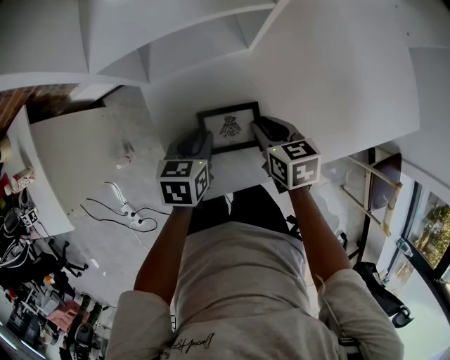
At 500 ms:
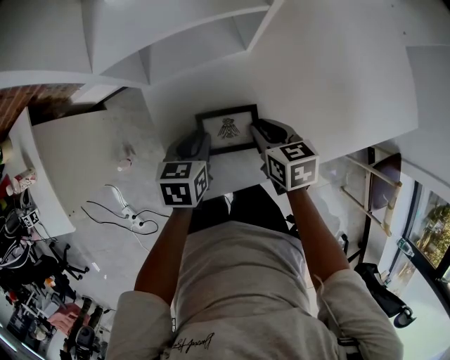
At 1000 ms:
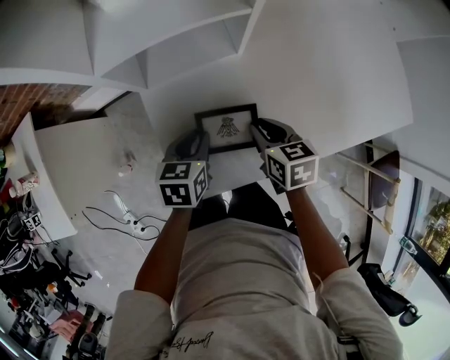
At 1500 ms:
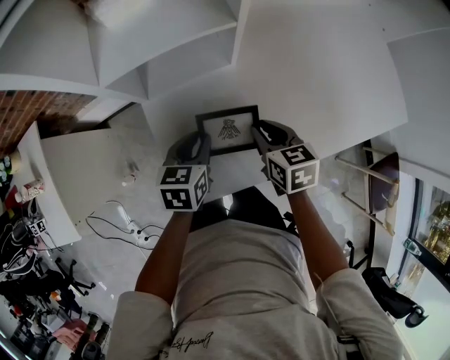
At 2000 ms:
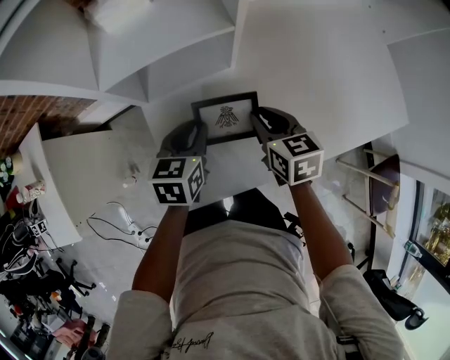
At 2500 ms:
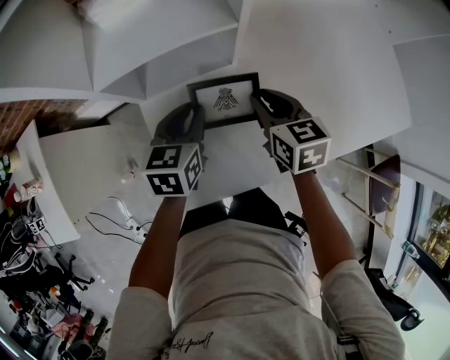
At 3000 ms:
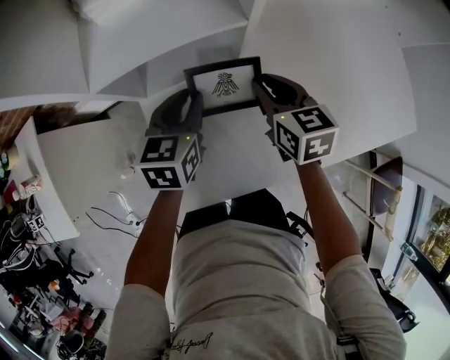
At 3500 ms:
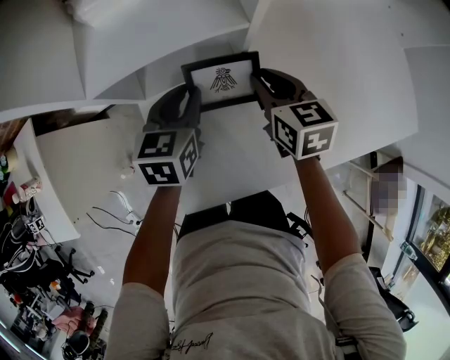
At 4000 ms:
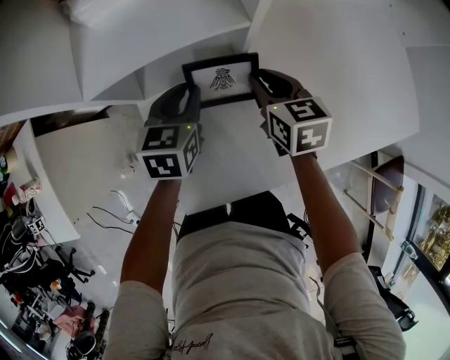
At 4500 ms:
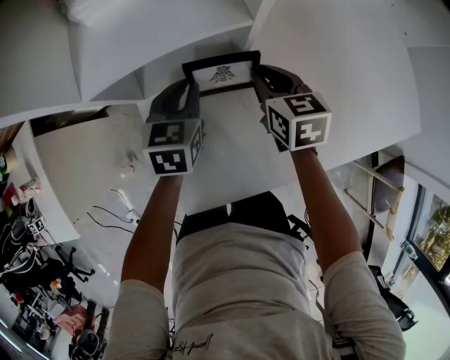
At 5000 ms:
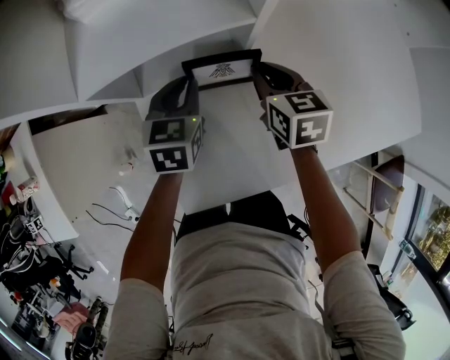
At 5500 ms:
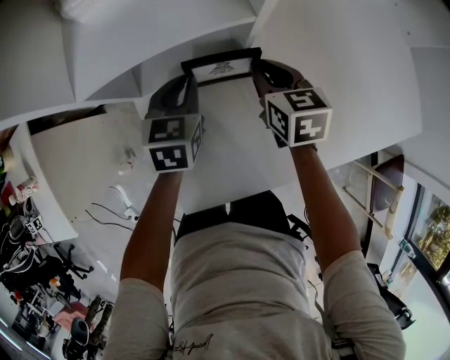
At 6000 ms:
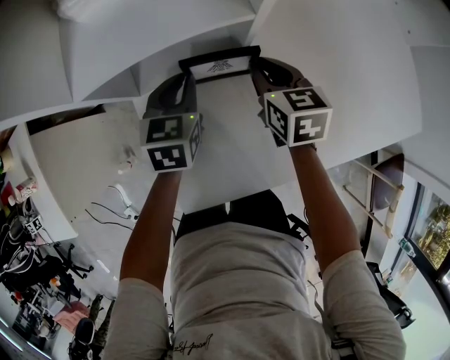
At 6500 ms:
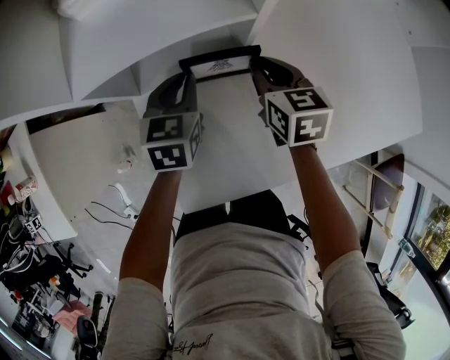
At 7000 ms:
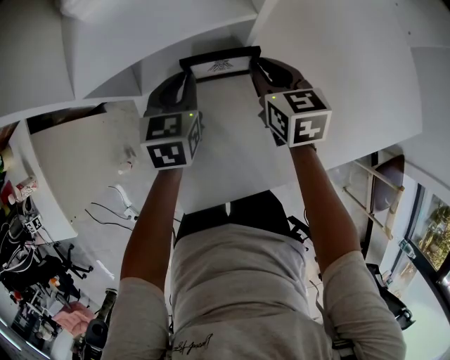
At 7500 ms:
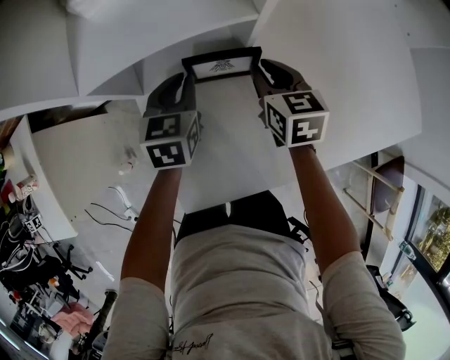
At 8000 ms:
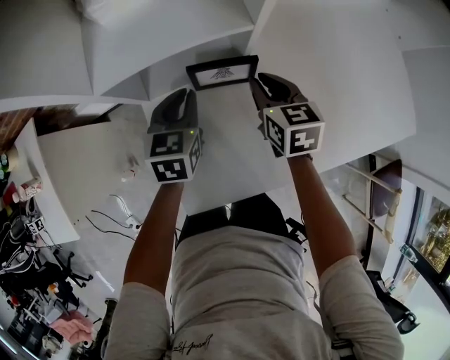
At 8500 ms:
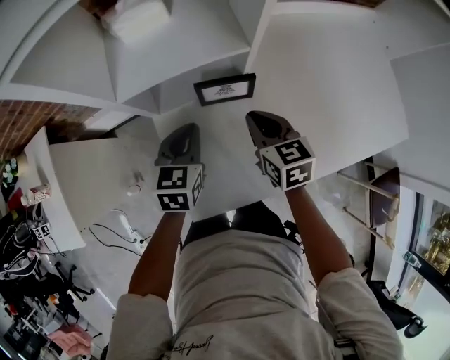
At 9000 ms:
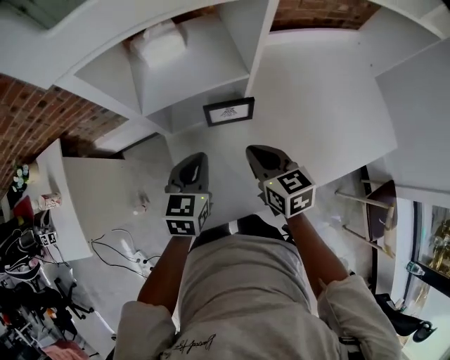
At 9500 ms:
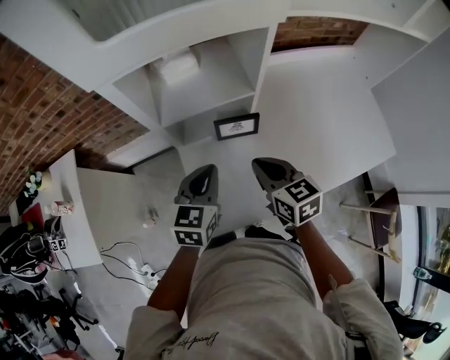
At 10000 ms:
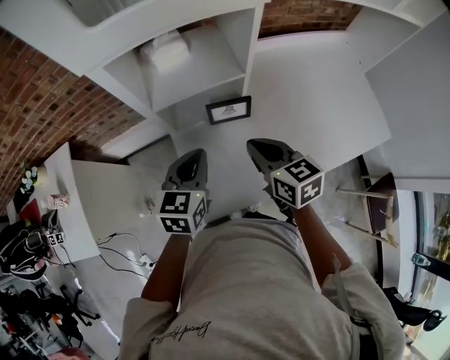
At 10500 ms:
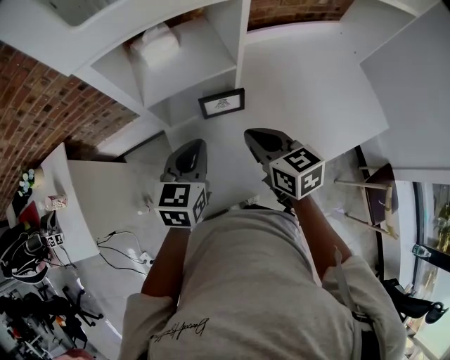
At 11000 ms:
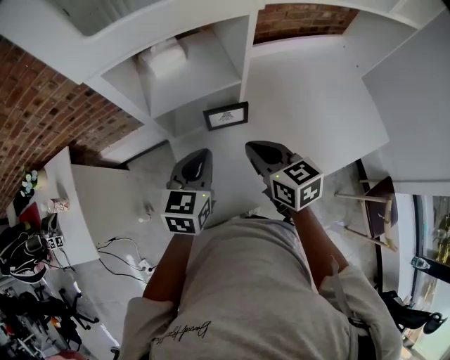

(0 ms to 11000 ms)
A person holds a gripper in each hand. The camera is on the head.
0 ms - 2000 ms: The left gripper moves upward and forward, about 10 cm. Meanwhile the right gripper shifts roughly 10 cm upward.
2000 ms - 3500 ms: Both grippers move forward, about 10 cm.
3500 ms - 5500 ms: The grippers make only small movements.
5500 ms - 7500 ms: The two grippers keep their place.
7500 ms - 9000 ms: The right gripper is displaced backward, upward and to the left by roughly 15 cm. The left gripper heads backward and upward, covering roughly 15 cm.
9000 ms - 11000 ms: Both grippers travel together upward, approximately 10 cm.

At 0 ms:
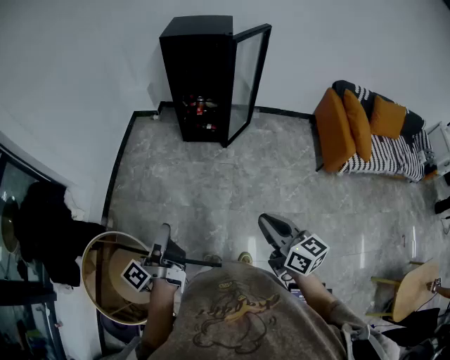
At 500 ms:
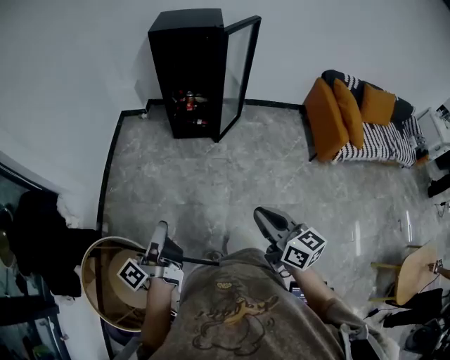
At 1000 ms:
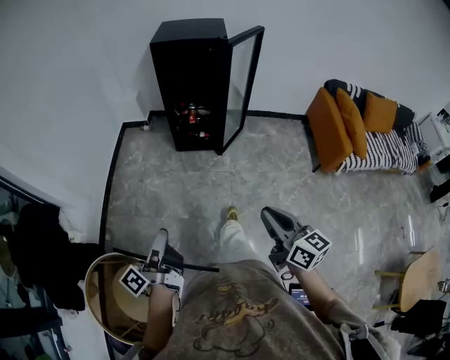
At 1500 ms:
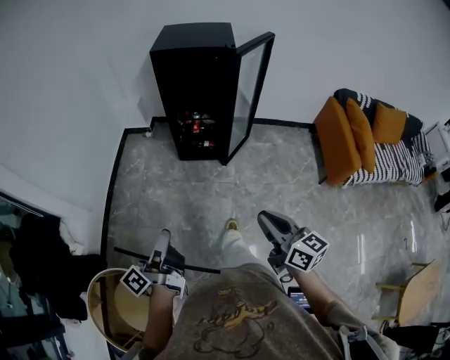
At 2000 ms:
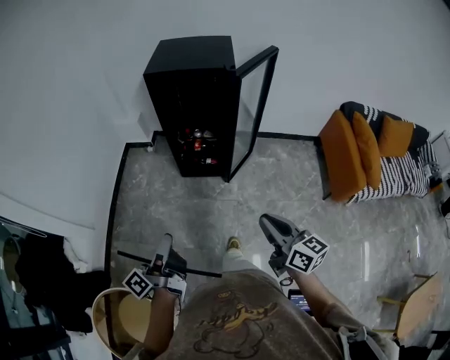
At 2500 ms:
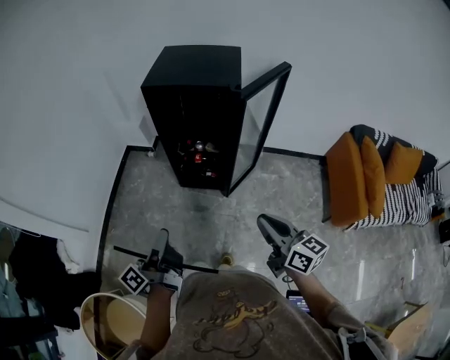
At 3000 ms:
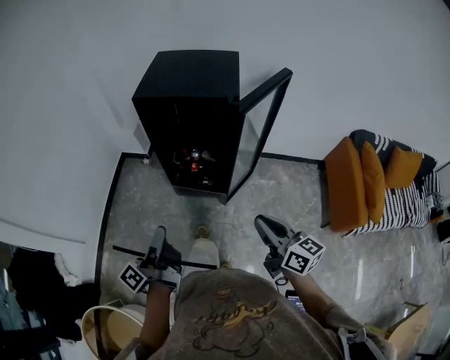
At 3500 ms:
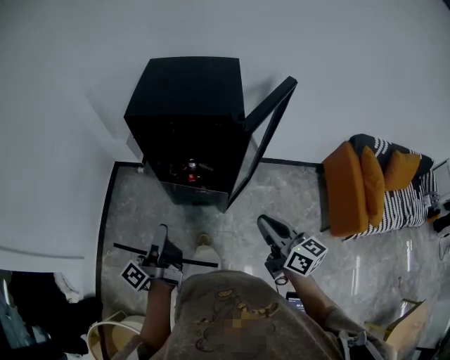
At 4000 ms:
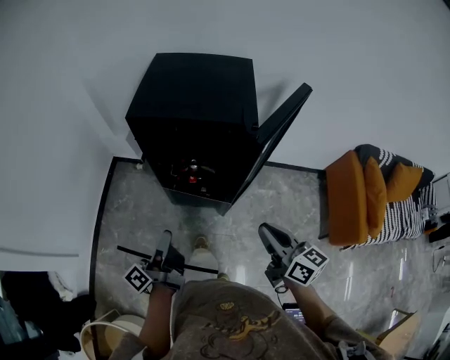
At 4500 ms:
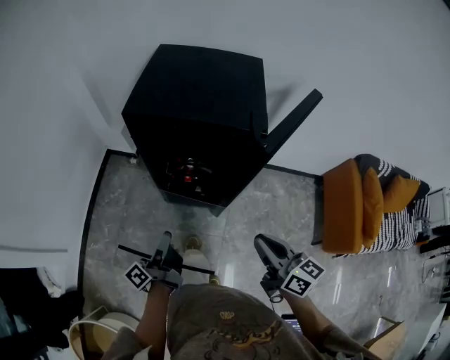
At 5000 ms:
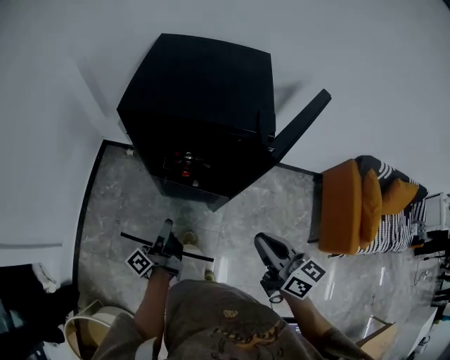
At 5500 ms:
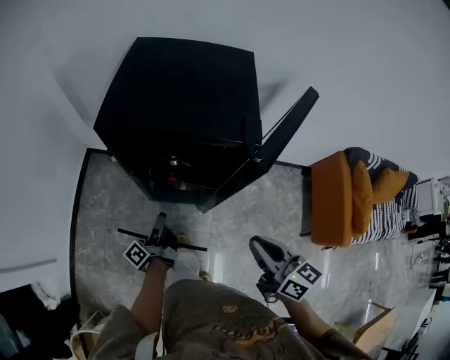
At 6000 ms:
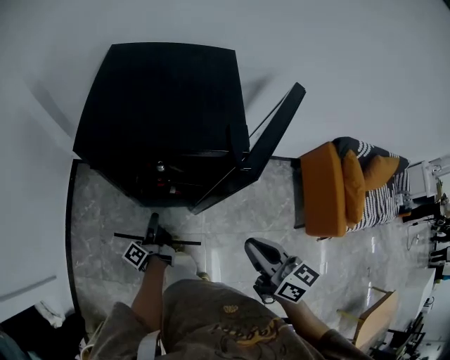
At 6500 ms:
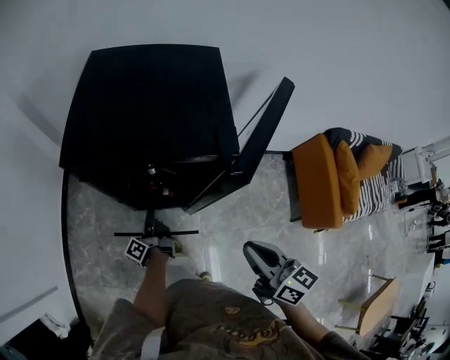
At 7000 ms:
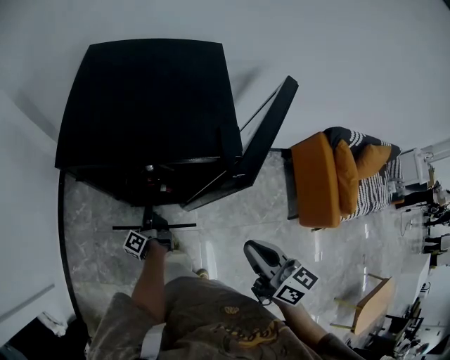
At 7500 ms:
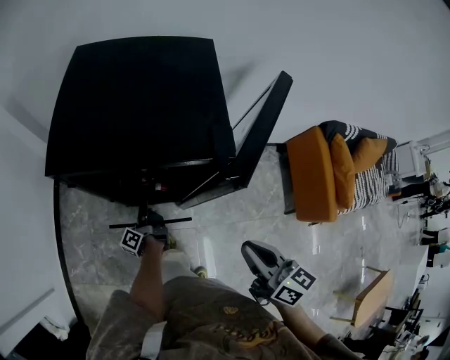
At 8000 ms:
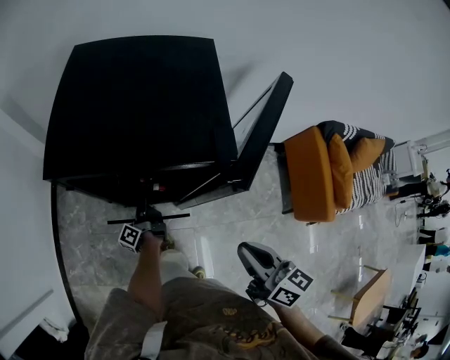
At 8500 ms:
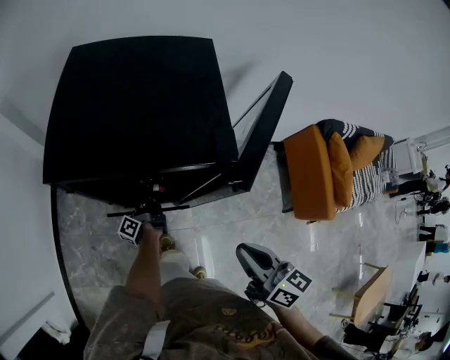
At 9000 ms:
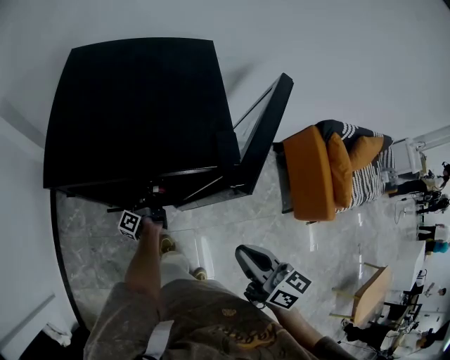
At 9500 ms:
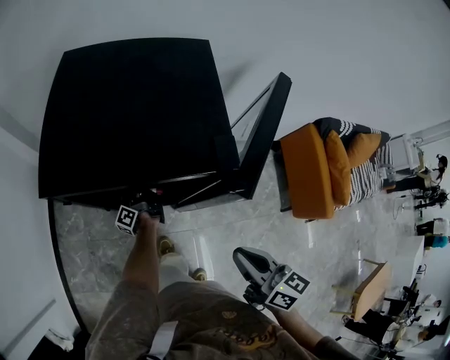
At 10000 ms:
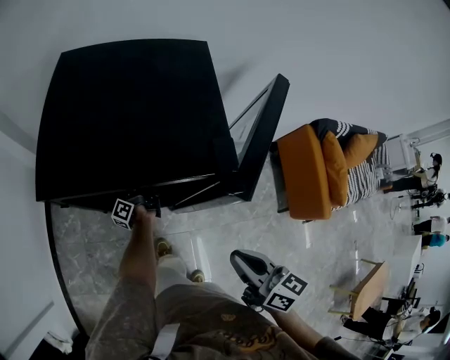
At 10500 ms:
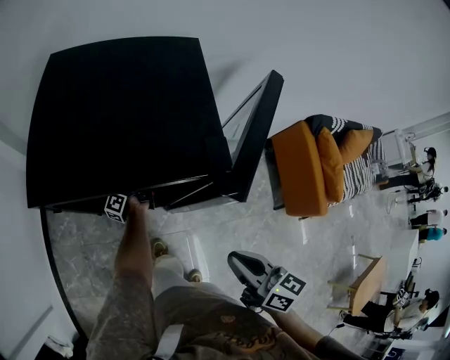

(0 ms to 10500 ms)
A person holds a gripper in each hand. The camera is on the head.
0 ms - 2000 ms: The right gripper changes place by approximately 30 cm.
2000 ms - 4000 ms: The right gripper ends up approximately 30 cm from where it was.
4000 ms - 6500 ms: The right gripper moves about 5 cm.

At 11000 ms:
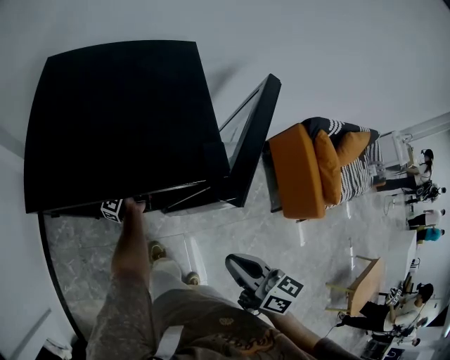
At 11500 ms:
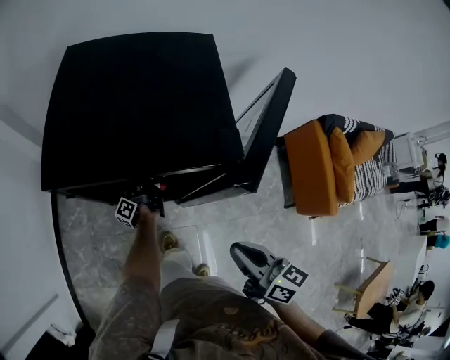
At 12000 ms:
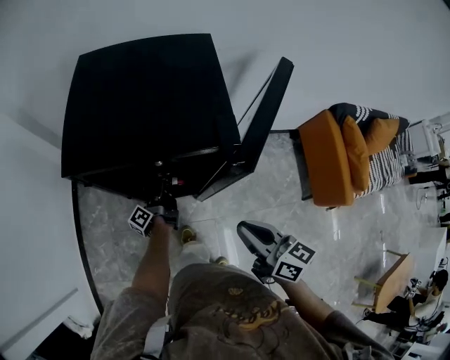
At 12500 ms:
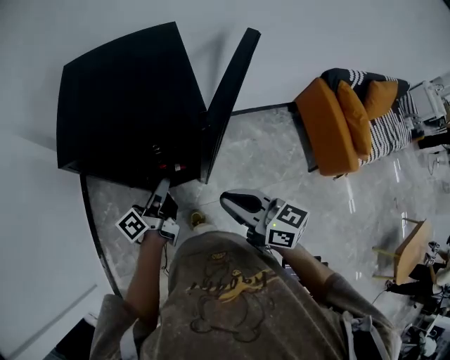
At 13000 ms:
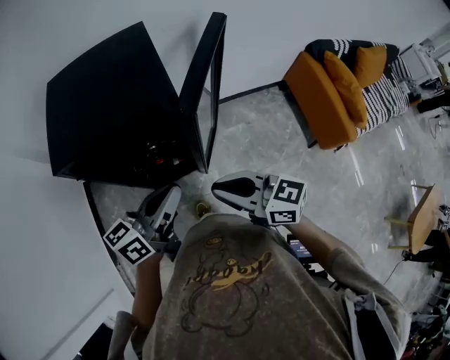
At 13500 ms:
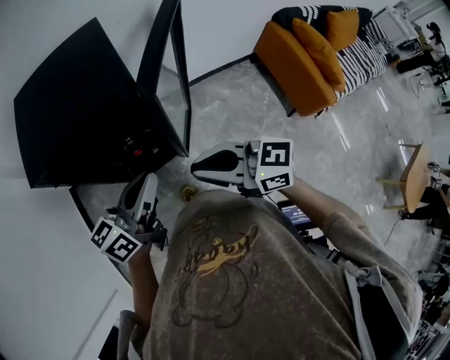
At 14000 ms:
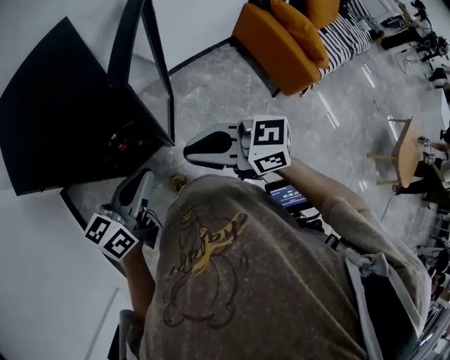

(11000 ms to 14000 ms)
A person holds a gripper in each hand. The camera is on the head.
11000 ms - 12500 ms: The right gripper shifts by some 5 cm.
12500 ms - 14000 ms: The right gripper ends up roughly 5 cm from where it was.

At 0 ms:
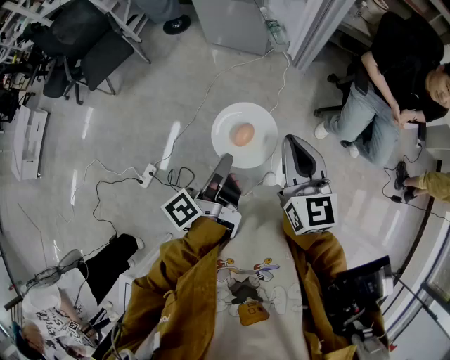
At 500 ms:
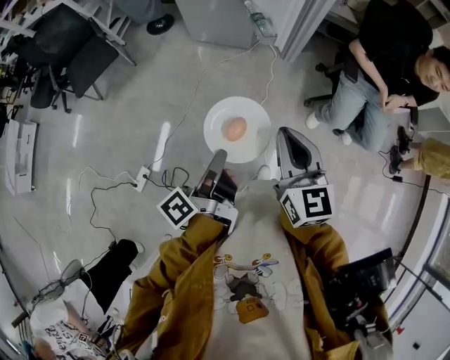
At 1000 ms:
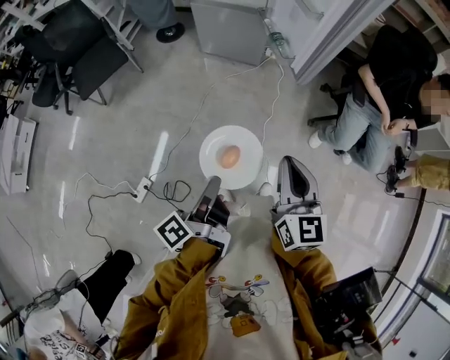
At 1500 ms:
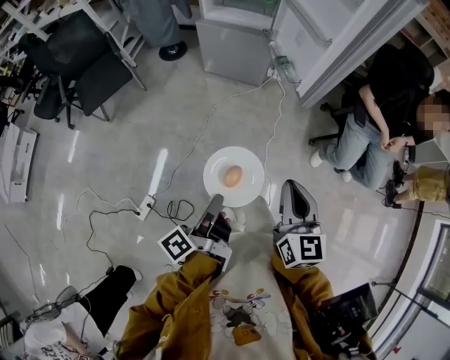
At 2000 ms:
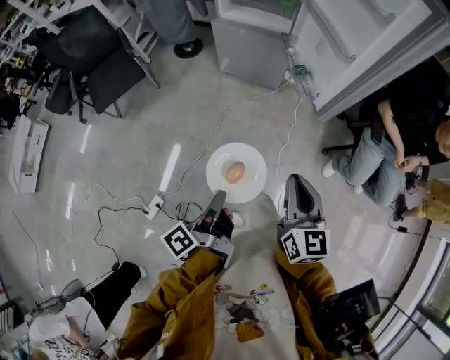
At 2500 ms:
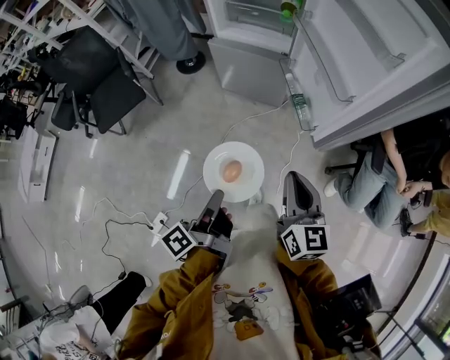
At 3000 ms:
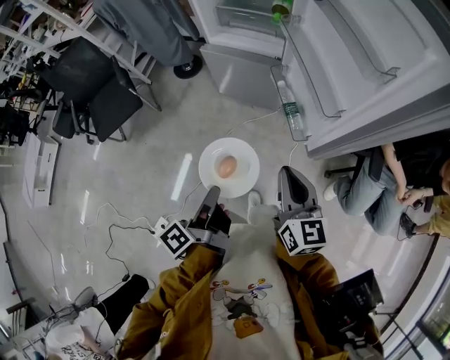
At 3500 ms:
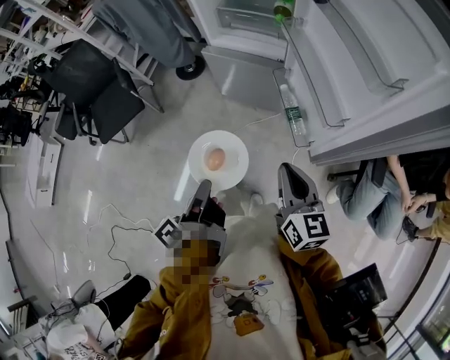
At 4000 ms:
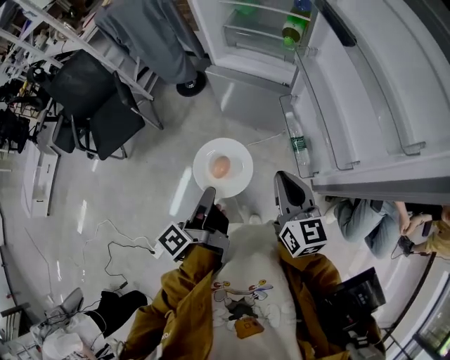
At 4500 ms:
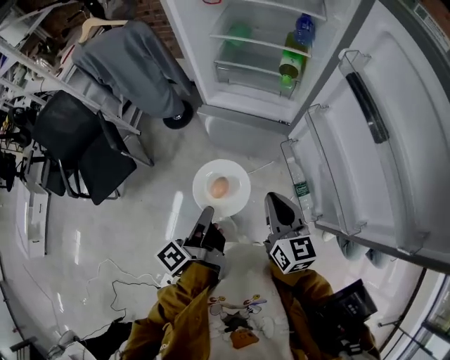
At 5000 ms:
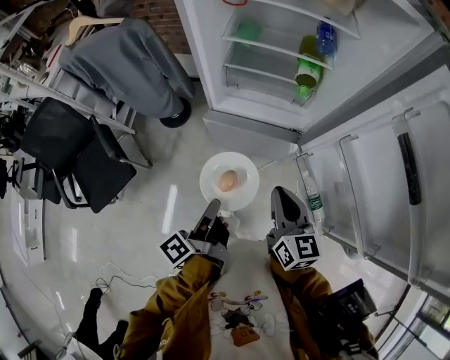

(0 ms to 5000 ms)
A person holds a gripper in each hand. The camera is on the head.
0 ms - 2500 ms: The right gripper moves some 25 cm.
2500 ms - 5000 ms: The right gripper changes place by some 40 cm.
